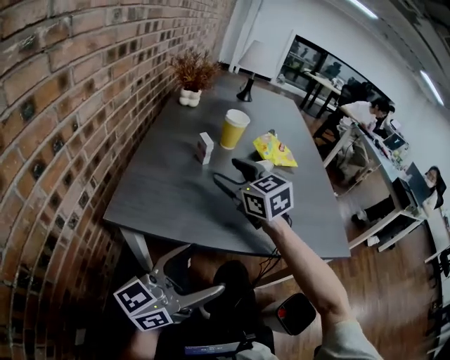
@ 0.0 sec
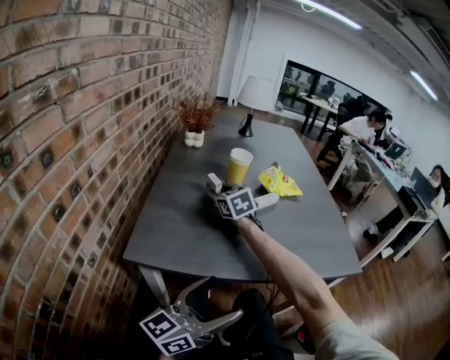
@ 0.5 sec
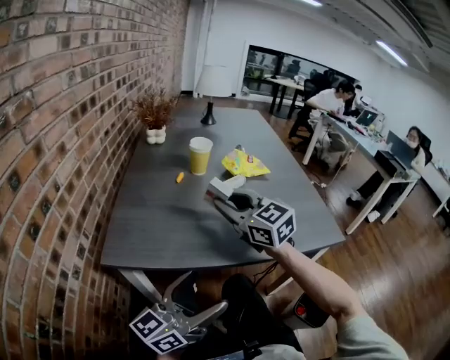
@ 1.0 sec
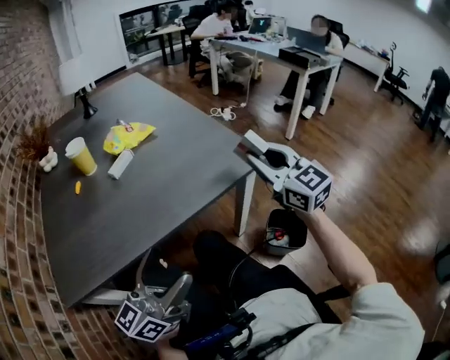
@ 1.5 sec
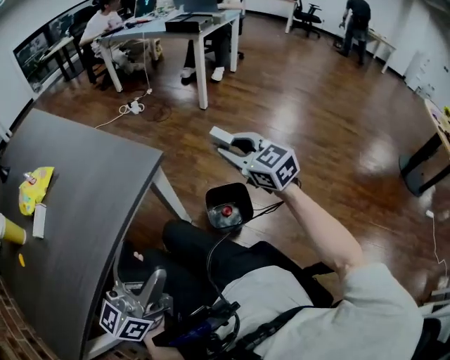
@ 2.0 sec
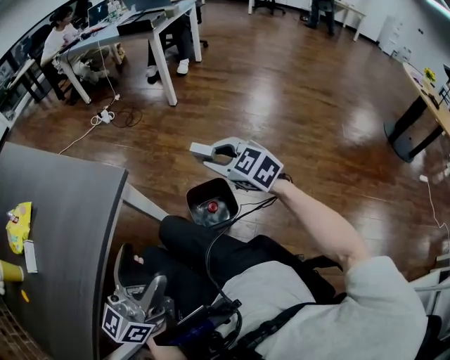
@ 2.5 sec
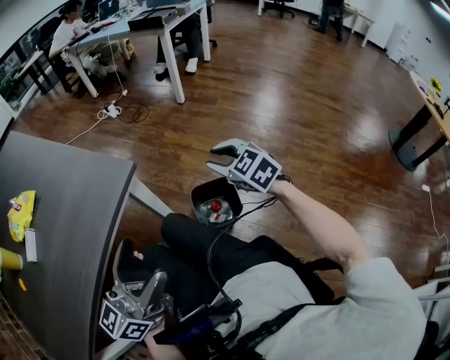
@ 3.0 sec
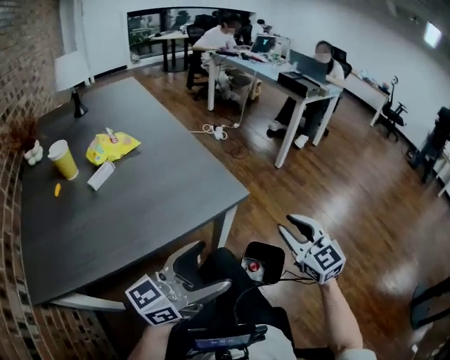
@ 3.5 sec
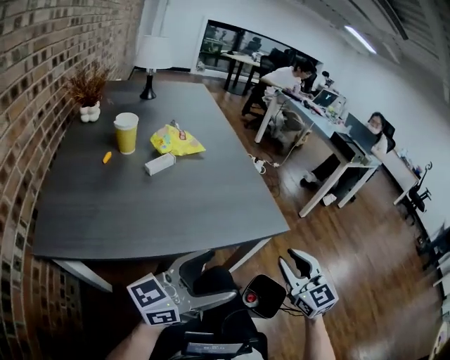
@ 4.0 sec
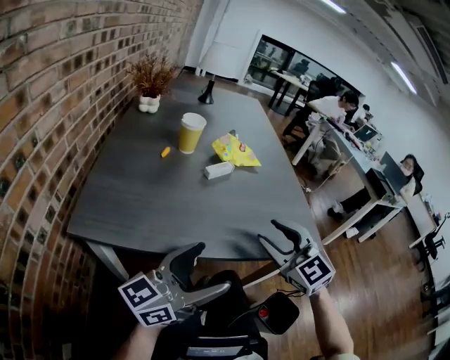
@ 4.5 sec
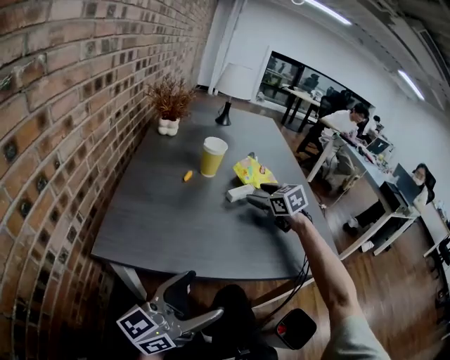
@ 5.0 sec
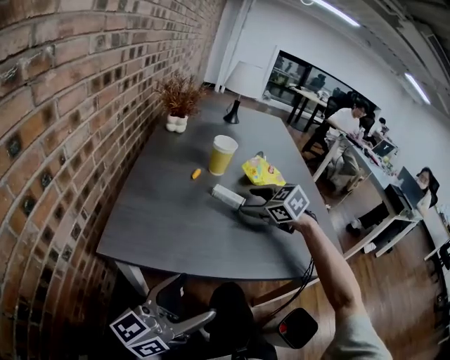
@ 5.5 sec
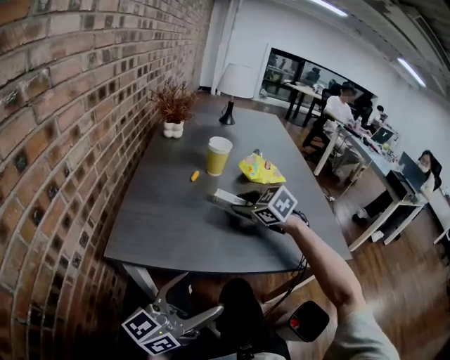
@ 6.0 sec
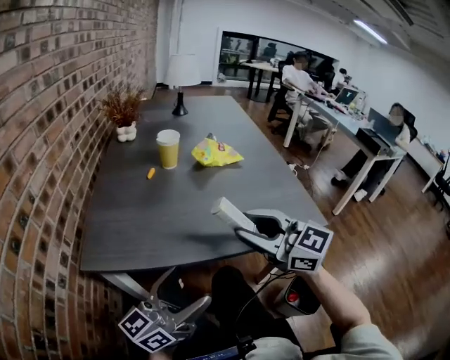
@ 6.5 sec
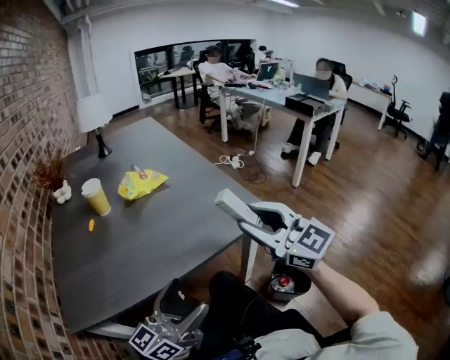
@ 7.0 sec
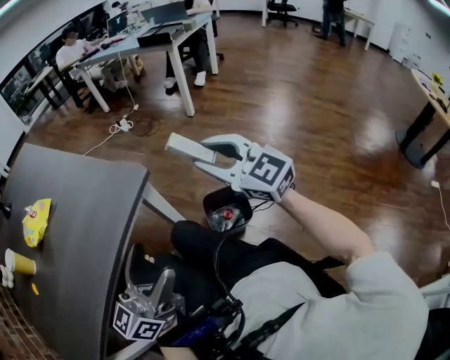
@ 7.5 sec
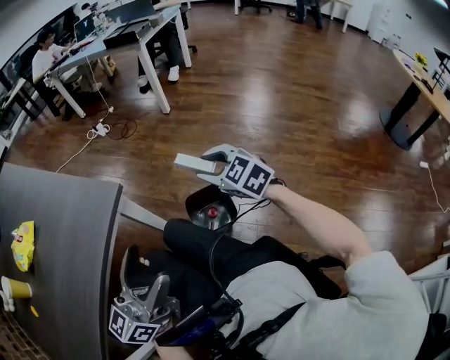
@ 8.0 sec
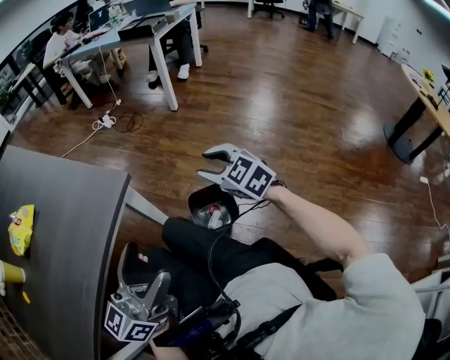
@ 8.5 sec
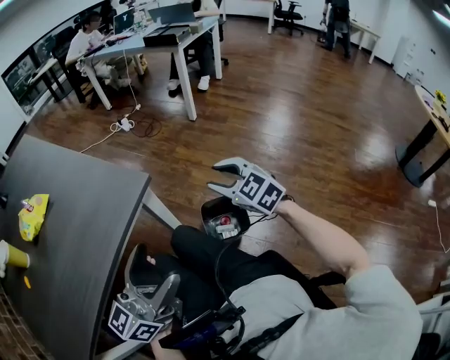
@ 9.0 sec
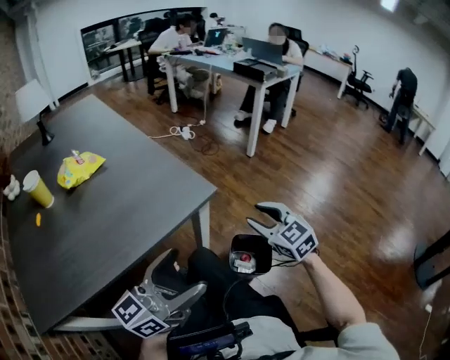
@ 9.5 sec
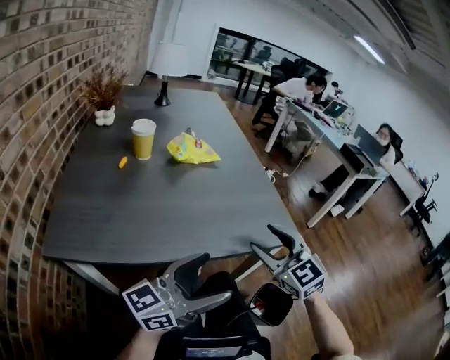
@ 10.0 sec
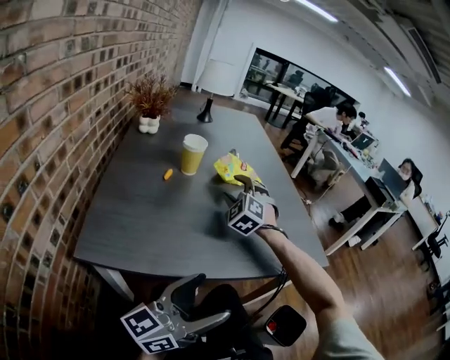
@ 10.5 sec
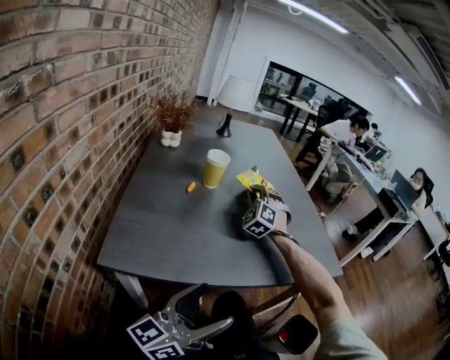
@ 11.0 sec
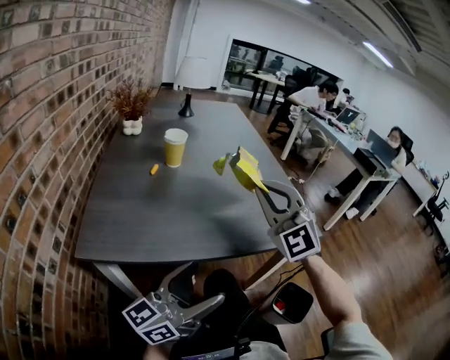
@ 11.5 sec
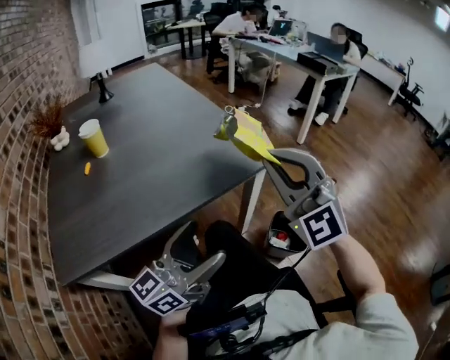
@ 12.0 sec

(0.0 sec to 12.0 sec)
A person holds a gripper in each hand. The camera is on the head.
0.0 sec - 2.0 sec: The right gripper moves up and down over about 10 cm, changing direction 2 times, swivels roughly 60 degrees, and closes. Meanwhile the left gripper changes place by roughly 30 cm, and turns by some 40 degrees.
2.0 sec - 4.0 sec: The right gripper moves to the left and backward, about 15 cm, and turns by approximately 30 degrees, while the left gripper travels to the right and back again, about 5 cm each way.
4.0 sec - 6.0 sec: The left gripper changes place by about 25 cm, and changes its angle by roughly 30 degrees, while the right gripper changes place by some 50 cm, tilts its fingers approximately 30 degrees downward, and opens, then closes again.
6.0 sec - 8.0 sec: The right gripper reaches roughly 15 cm upward, then returns, and rotates about 70 degrees. The left gripper shifts by about 35 cm, and swivels about 50 degrees.
8.0 sec - 10.0 sec: The left gripper moves roughly 20 cm, and swivels roughly 30 degrees. The right gripper shifts by roughly 40 cm, and rotates about 40 degrees.
10.0 sec - 12.0 sec: The right gripper is displaced upward and backward by roughly 15 cm, goes to the left and returns, approximately 30 cm each way, changes its angle by approximately 40 degrees, and closes its fingers, while the left gripper goes to the left and returns, about 15 cm each way.

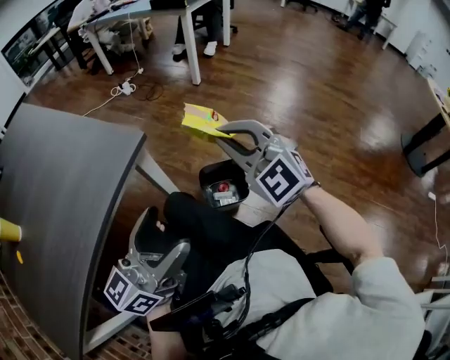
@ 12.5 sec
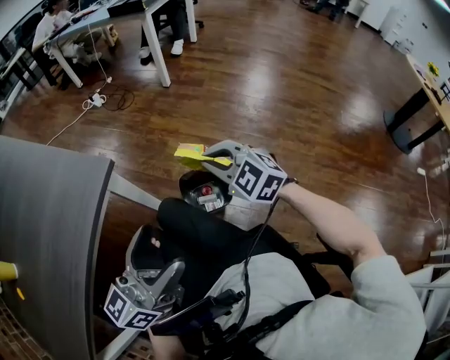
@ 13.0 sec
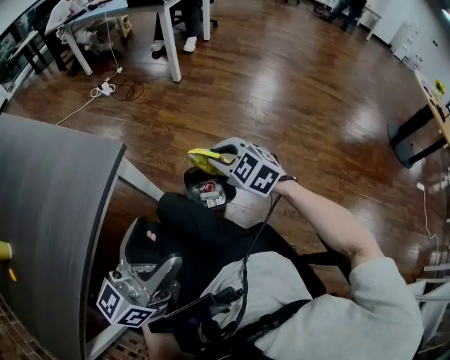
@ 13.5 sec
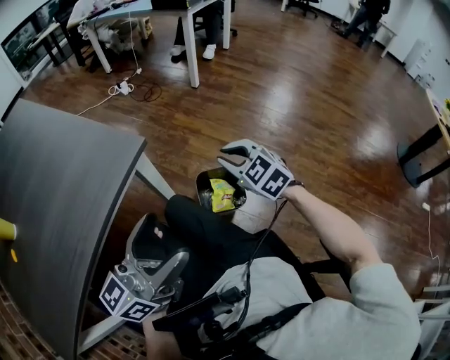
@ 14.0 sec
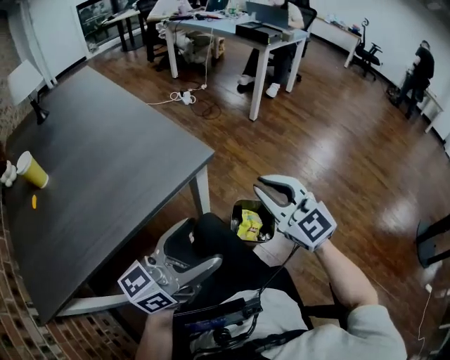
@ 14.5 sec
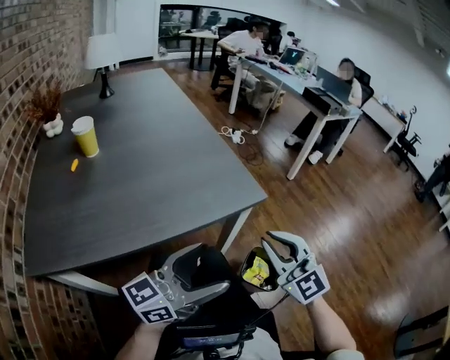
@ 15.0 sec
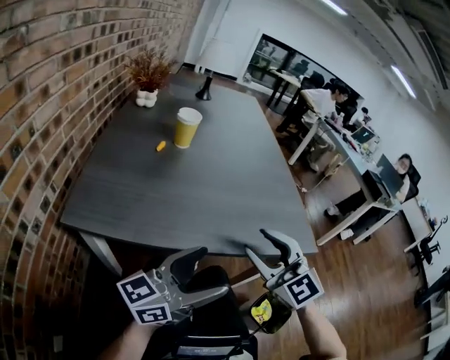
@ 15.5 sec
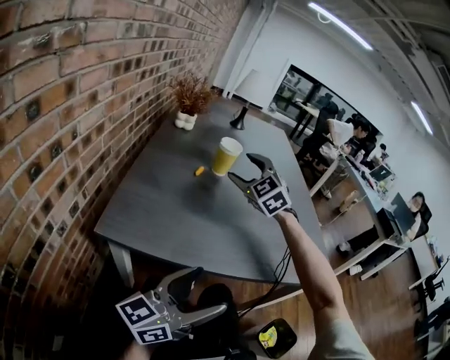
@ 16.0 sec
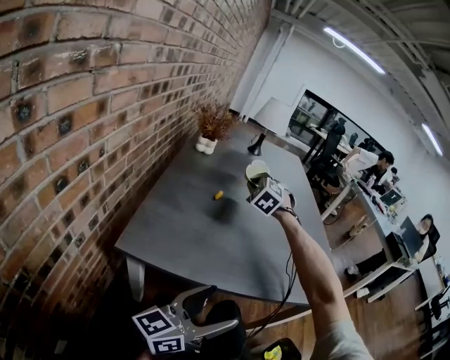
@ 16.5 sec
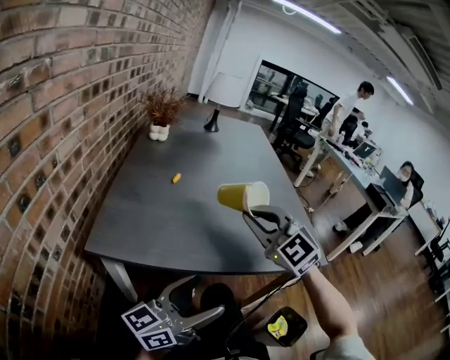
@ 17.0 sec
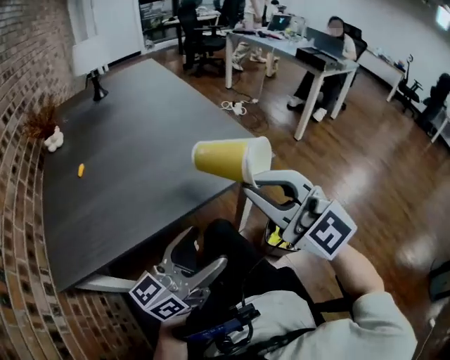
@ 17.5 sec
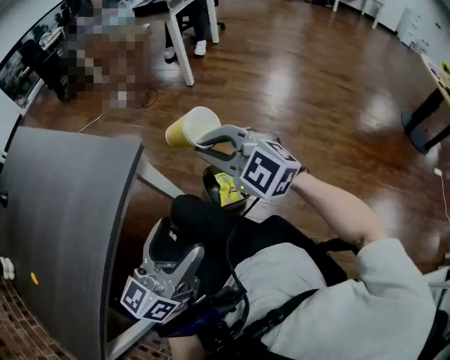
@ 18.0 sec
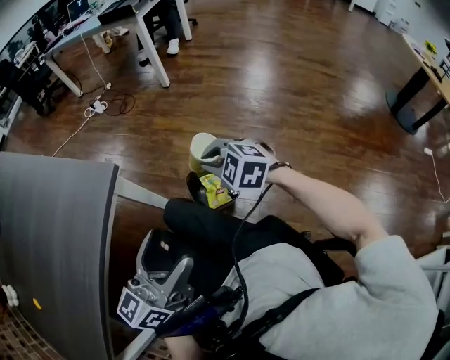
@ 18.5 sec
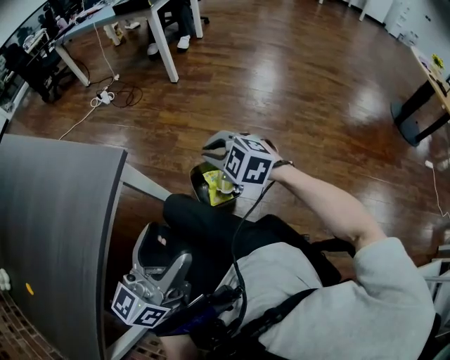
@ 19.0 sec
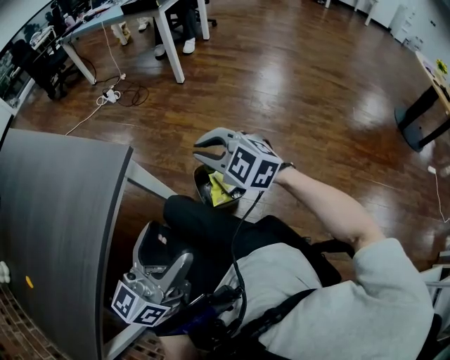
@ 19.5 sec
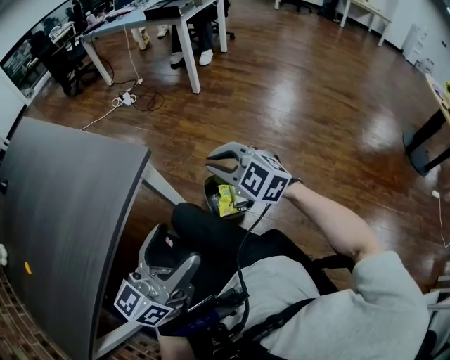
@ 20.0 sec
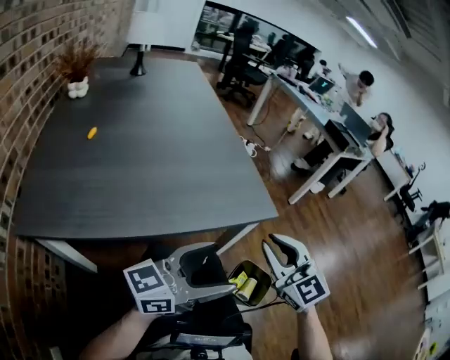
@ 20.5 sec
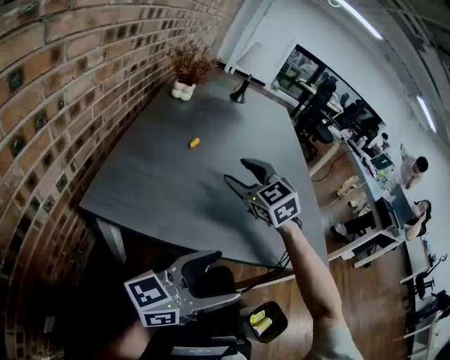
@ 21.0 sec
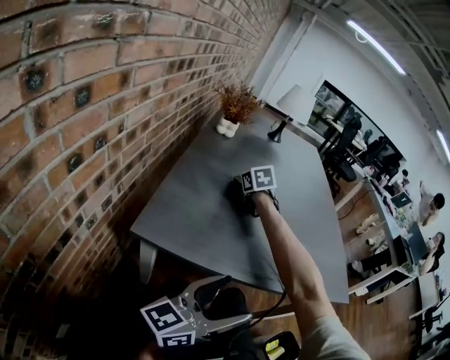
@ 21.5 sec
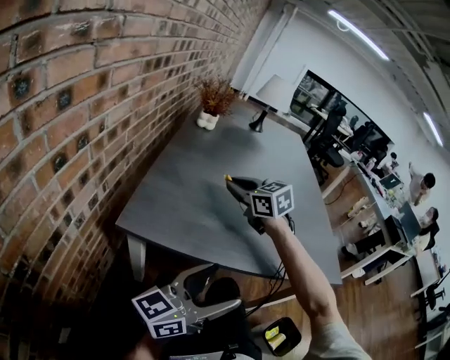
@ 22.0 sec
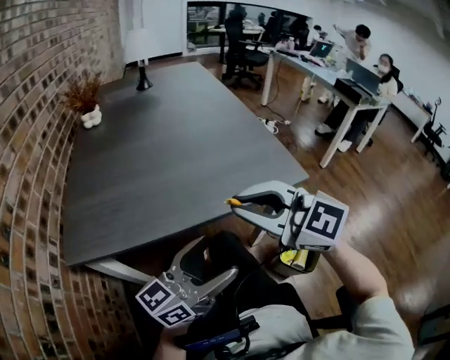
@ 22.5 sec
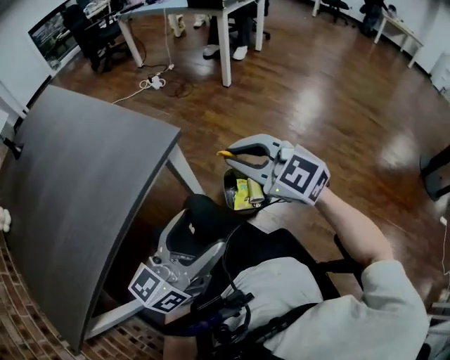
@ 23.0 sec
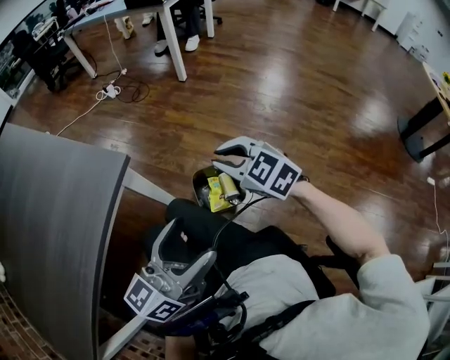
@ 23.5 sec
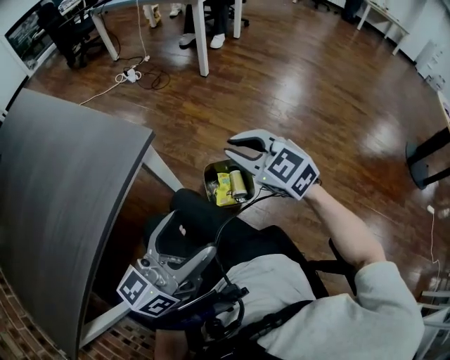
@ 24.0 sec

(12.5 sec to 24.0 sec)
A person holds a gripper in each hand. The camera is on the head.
12.5 sec - 14.5 sec: The right gripper moves approximately 15 cm downward and comes back, and swivels approximately 20 degrees.
14.5 sec - 16.5 sec: The right gripper shifts by about 70 cm, rotates around the line of its fingers by approximately 50 degrees, counterclockwise from behind, and opens, then closes once more; the left gripper changes place by some 30 cm, and changes its angle by about 50 degrees.
16.5 sec - 18.5 sec: The right gripper changes place by roughly 80 cm, and twists some 60 degrees clockwise, seen from behind. Meanwhile the left gripper ends up about 35 cm from where it was, and swivels some 60 degrees.
18.5 sec - 20.0 sec: The right gripper moves upward and to the left, approximately 10 cm.
20.0 sec - 22.0 sec: The left gripper moves some 35 cm, and swivels approximately 50 degrees; the right gripper goes up and down, about 15 cm each way, reversing 2 times, swivels roughly 50 degrees, and opens, then closes once more.
22.0 sec - 24.0 sec: The right gripper moves roughly 70 cm, and turns by about 60 degrees; the left gripper changes place by approximately 35 cm, and rotates some 50 degrees.

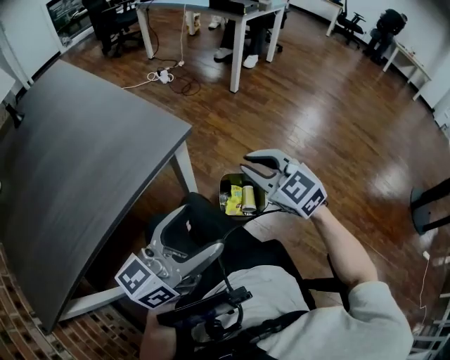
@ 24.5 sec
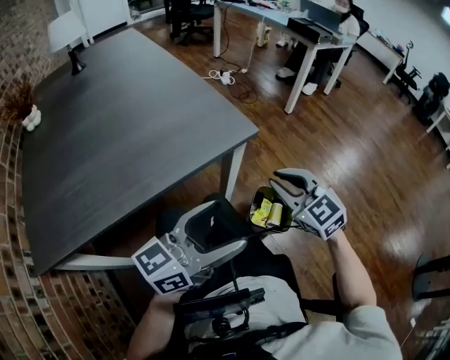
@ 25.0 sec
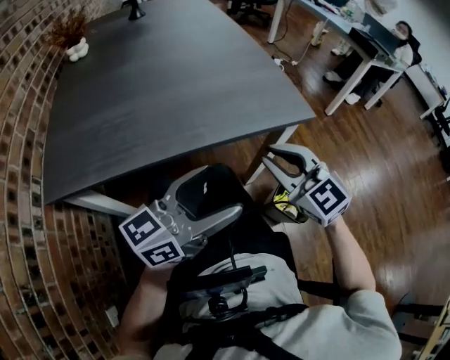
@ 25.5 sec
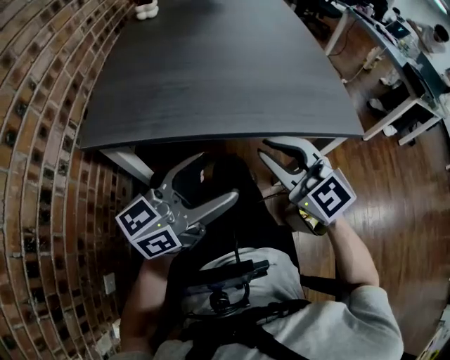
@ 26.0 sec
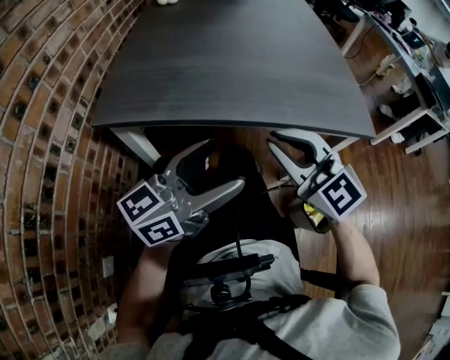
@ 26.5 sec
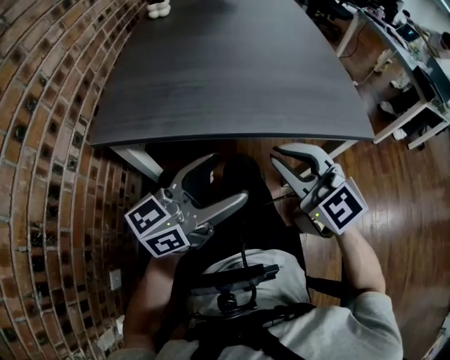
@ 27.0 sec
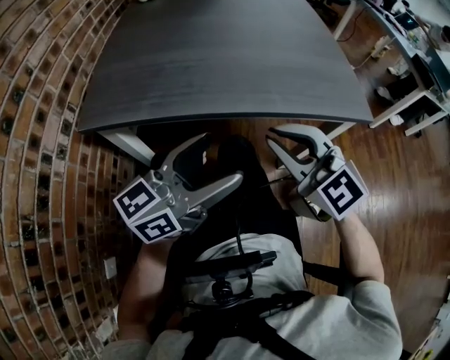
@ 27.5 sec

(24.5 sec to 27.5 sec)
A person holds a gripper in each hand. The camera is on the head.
24.5 sec - 26.0 sec: The right gripper moves about 35 cm, and swivels about 50 degrees. Meanwhile the left gripper changes place by about 25 cm, and changes its angle by roughly 40 degrees.
26.0 sec - 27.5 sec: The grippers stay close to where they were, moving slightly.
